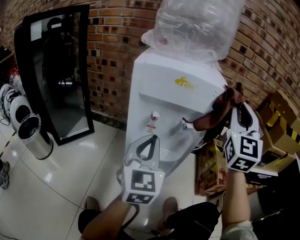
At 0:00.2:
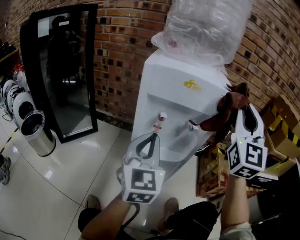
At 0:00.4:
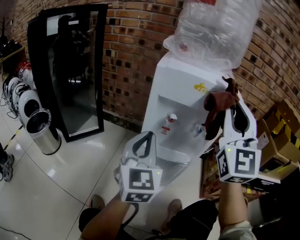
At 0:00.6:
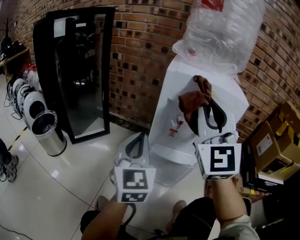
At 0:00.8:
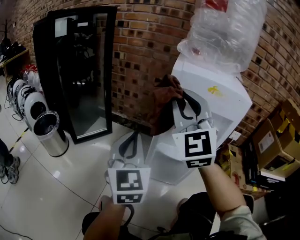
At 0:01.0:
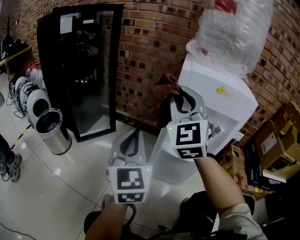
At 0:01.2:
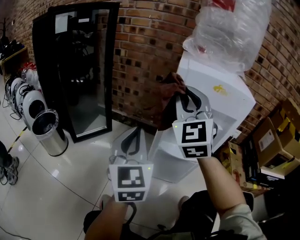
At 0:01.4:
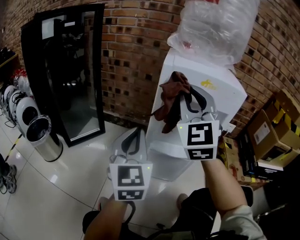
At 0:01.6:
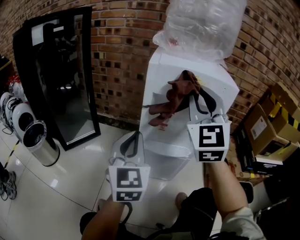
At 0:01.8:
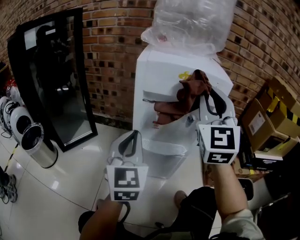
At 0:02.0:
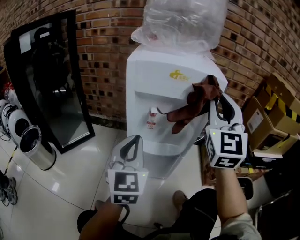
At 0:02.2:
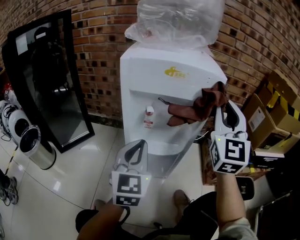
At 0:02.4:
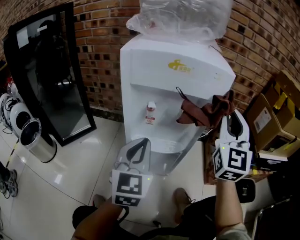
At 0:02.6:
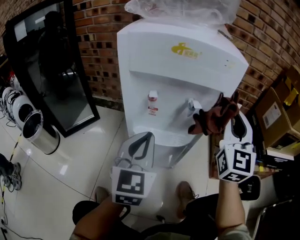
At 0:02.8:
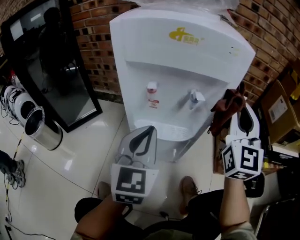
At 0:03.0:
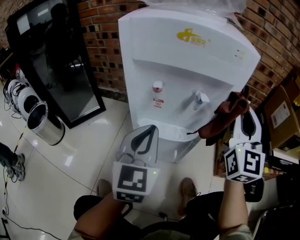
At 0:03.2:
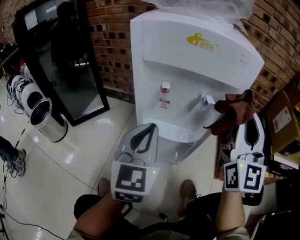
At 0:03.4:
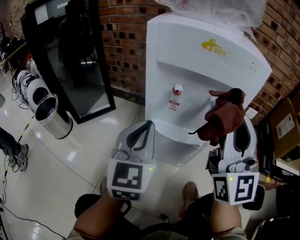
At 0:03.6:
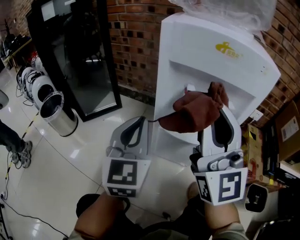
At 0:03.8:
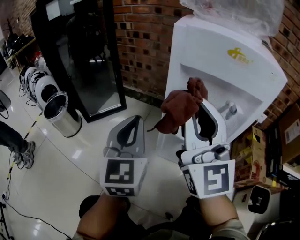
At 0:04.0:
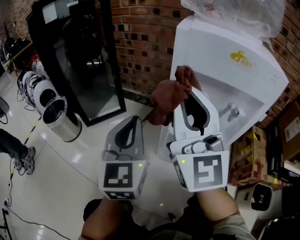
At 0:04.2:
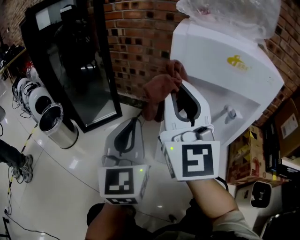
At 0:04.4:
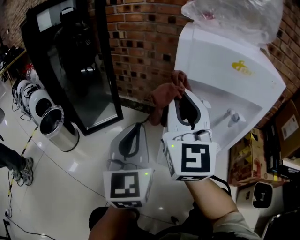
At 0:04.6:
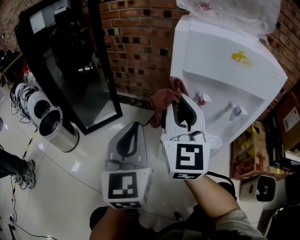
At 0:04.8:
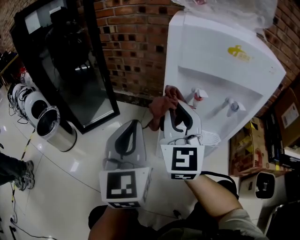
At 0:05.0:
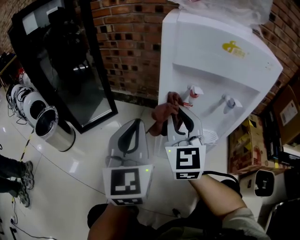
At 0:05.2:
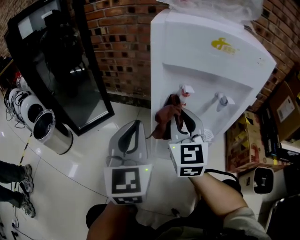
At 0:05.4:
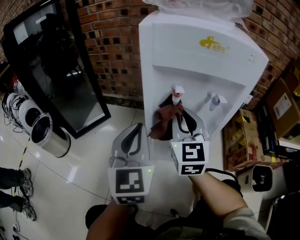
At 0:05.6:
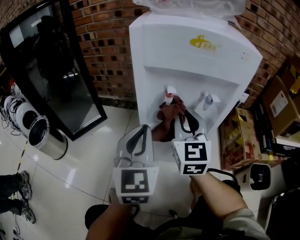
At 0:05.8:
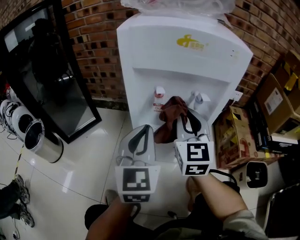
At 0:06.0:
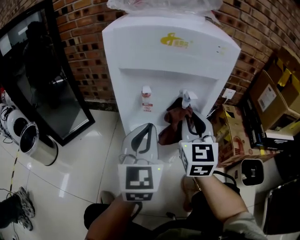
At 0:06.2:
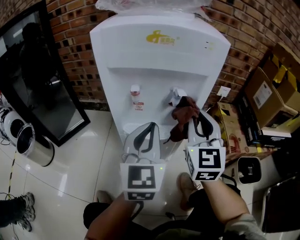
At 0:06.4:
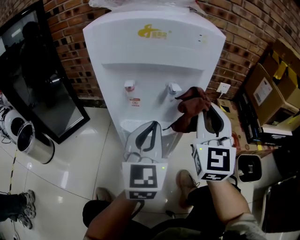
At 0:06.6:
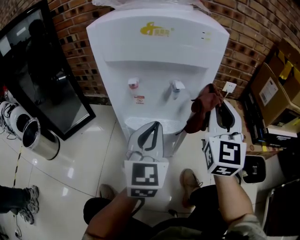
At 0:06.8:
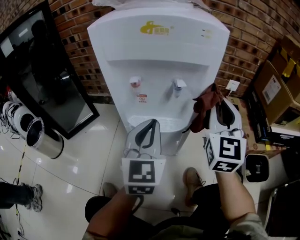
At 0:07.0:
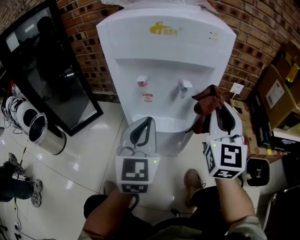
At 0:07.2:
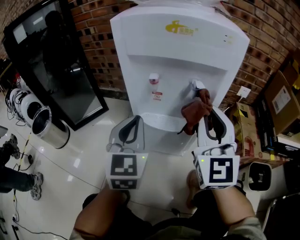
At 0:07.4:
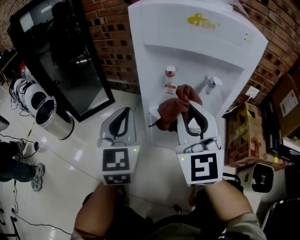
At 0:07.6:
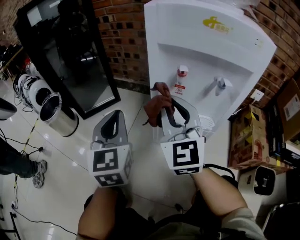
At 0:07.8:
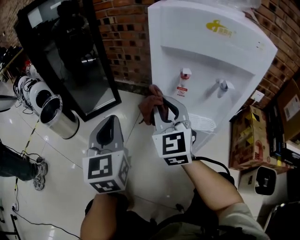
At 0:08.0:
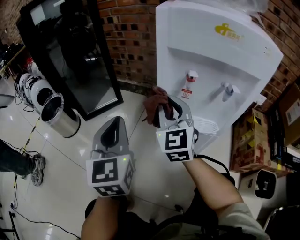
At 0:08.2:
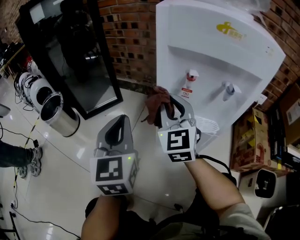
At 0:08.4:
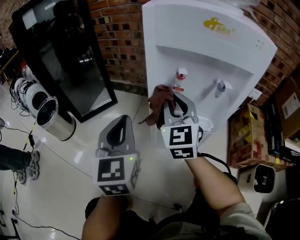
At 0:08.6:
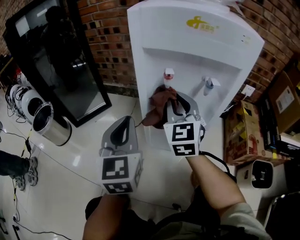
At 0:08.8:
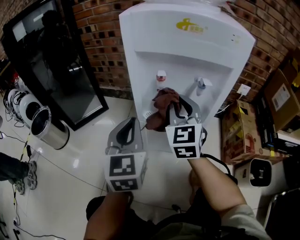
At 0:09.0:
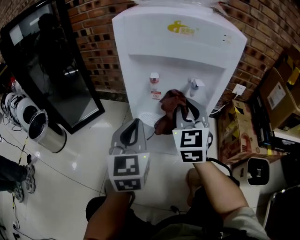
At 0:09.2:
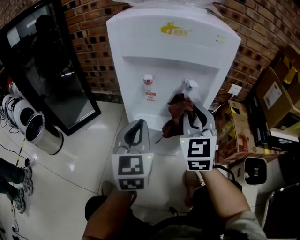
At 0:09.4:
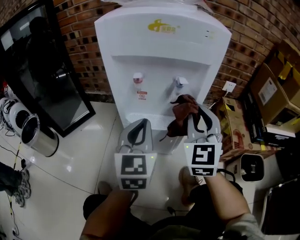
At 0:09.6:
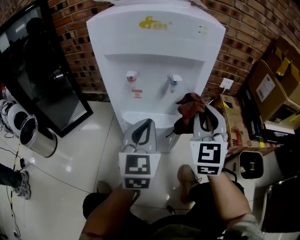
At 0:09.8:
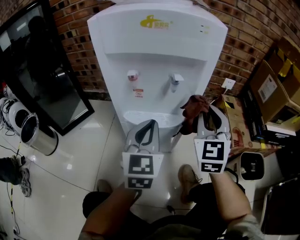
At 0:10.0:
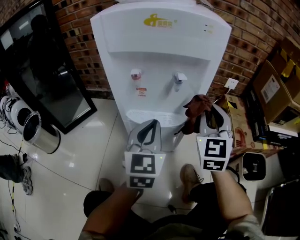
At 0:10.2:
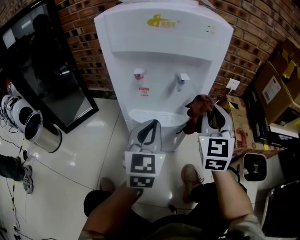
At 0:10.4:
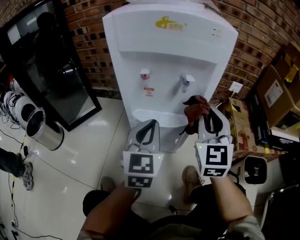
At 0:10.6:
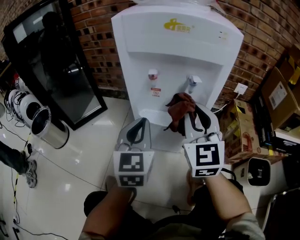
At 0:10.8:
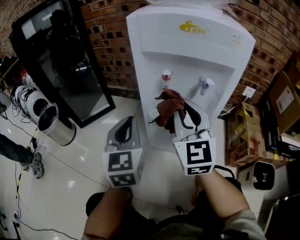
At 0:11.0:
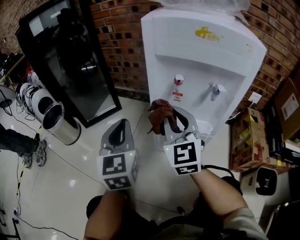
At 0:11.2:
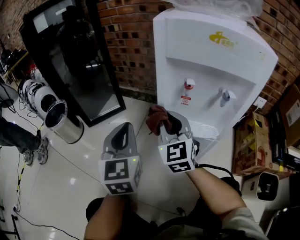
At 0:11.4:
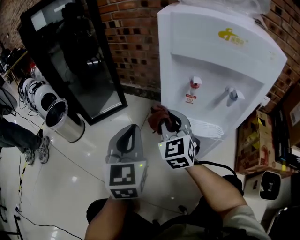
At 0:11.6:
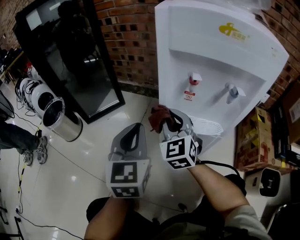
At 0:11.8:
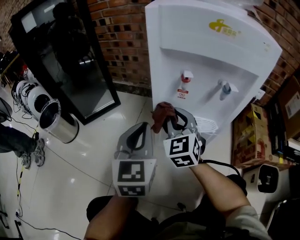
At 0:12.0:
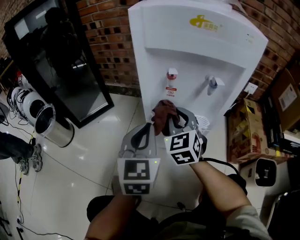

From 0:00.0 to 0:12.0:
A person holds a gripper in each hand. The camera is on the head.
From 0:00.0 to 0:01.6: The left gripper goes about 10 cm to the left. The right gripper moves to the left, about 20 cm.
From 0:01.6 to 0:03.0: The right gripper heads to the right and downward, covering roughly 25 cm, and changes its angle by approximately 20 degrees. Meanwhile the left gripper is displaced to the right and downward by approximately 10 cm.
From 0:03.0 to 0:04.4: The right gripper moves to the left, about 30 cm. The left gripper moves to the left, roughly 15 cm.
From 0:04.4 to 0:06.0: The right gripper goes about 25 cm to the right and downward, and turns by approximately 30 degrees. The left gripper travels to the right by approximately 15 cm.
From 0:06.0 to 0:07.6: The left gripper moves roughly 20 cm, and swivels some 20 degrees, while the right gripper moves about 15 cm, and swivels approximately 30 degrees.
From 0:07.6 to 0:09.0: The grippers both shift to the right by about 10 cm. The right gripper changes its angle by approximately 20 degrees.
From 0:09.0 to 0:10.4: Both grippers travel together to the right, roughly 10 cm.
From 0:10.4 to 0:12.0: The right gripper moves to the left, downward and forward, roughly 20 cm, and changes its angle by about 20 degrees, while the left gripper travels to the left by approximately 10 cm.

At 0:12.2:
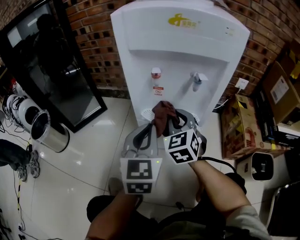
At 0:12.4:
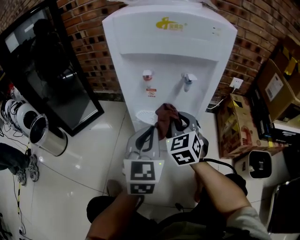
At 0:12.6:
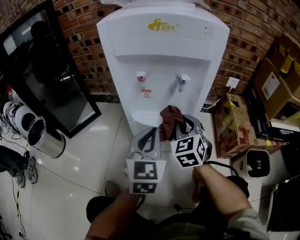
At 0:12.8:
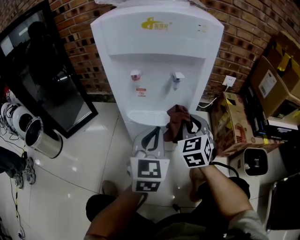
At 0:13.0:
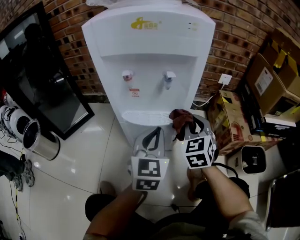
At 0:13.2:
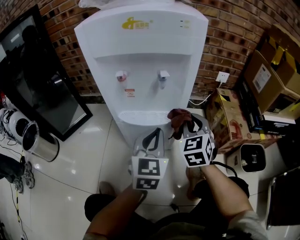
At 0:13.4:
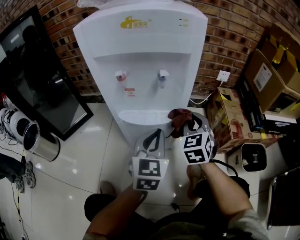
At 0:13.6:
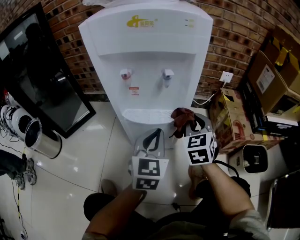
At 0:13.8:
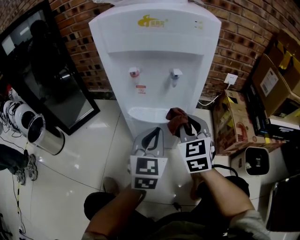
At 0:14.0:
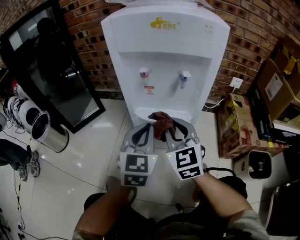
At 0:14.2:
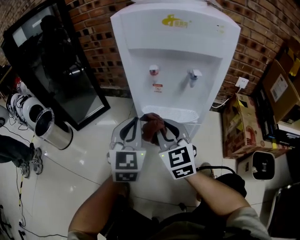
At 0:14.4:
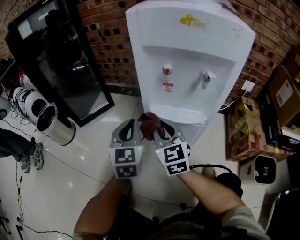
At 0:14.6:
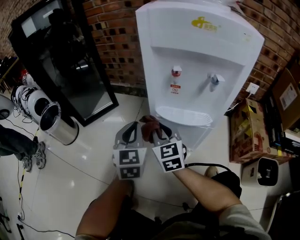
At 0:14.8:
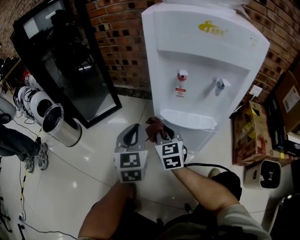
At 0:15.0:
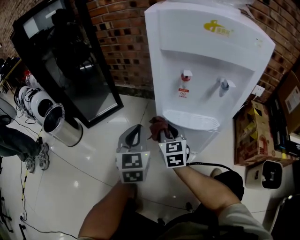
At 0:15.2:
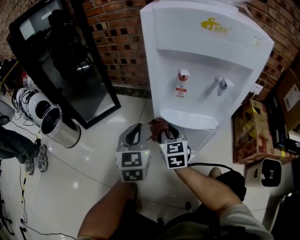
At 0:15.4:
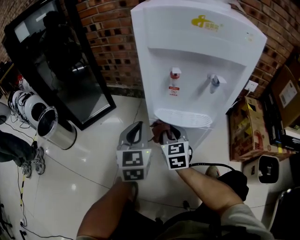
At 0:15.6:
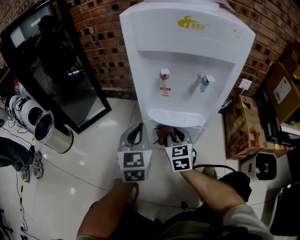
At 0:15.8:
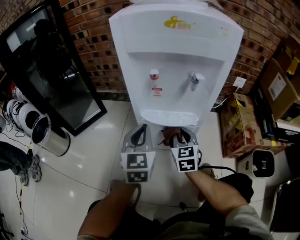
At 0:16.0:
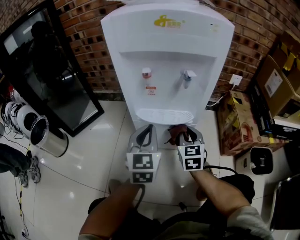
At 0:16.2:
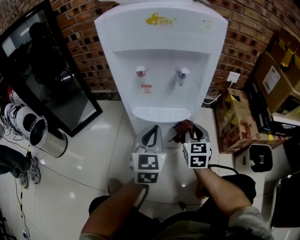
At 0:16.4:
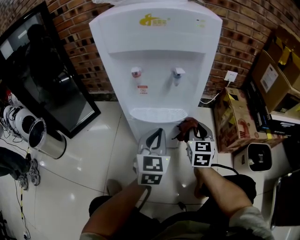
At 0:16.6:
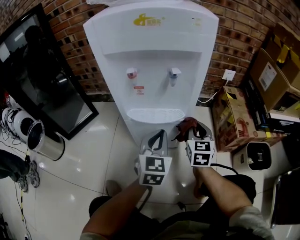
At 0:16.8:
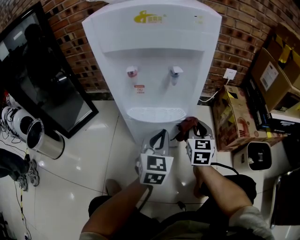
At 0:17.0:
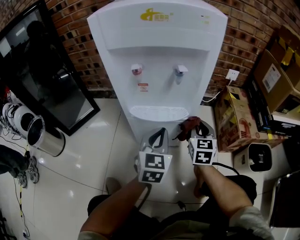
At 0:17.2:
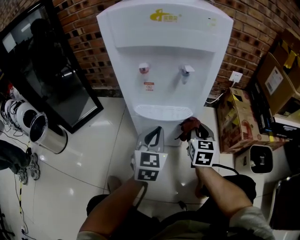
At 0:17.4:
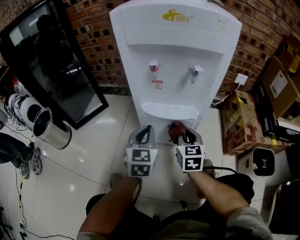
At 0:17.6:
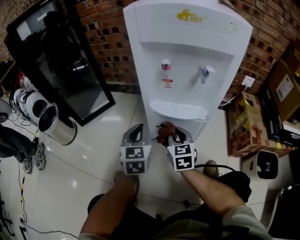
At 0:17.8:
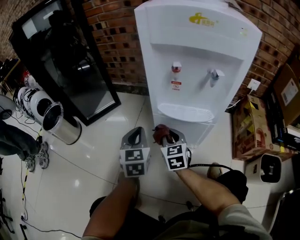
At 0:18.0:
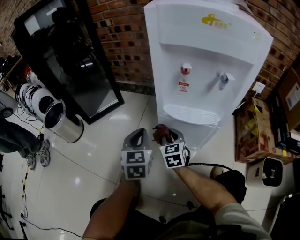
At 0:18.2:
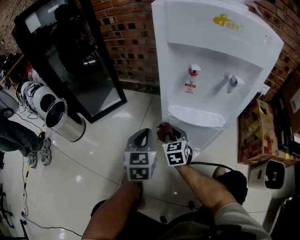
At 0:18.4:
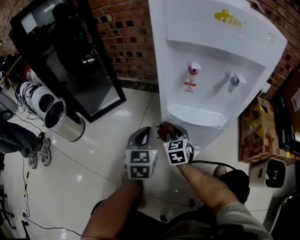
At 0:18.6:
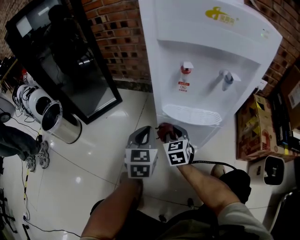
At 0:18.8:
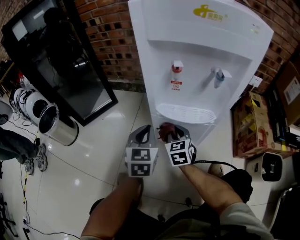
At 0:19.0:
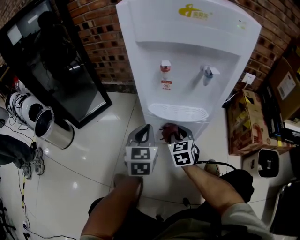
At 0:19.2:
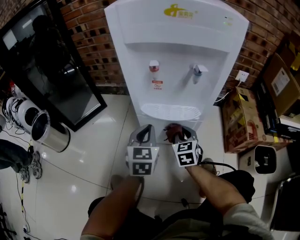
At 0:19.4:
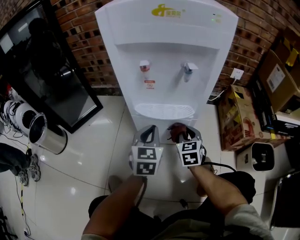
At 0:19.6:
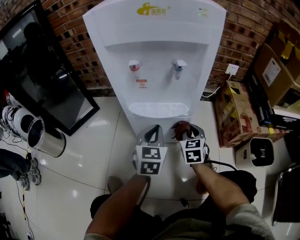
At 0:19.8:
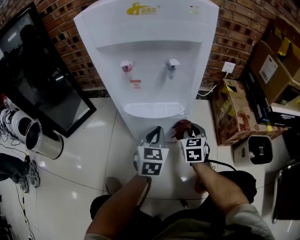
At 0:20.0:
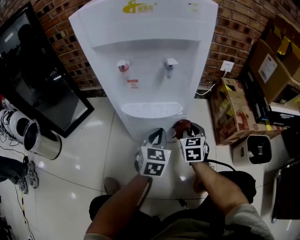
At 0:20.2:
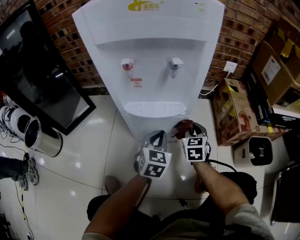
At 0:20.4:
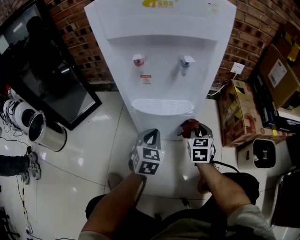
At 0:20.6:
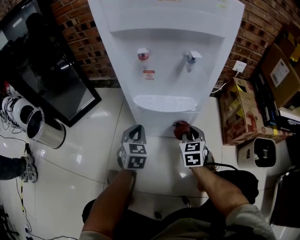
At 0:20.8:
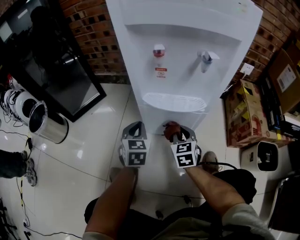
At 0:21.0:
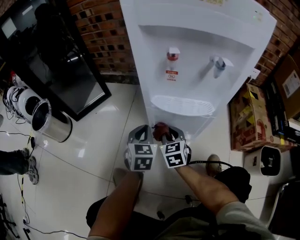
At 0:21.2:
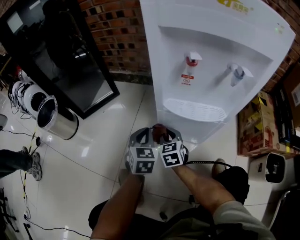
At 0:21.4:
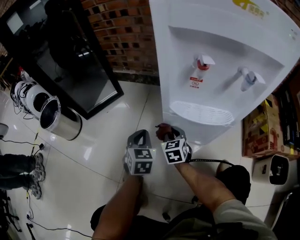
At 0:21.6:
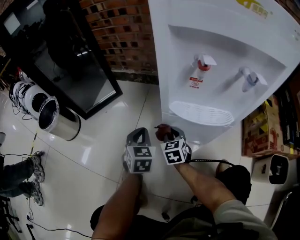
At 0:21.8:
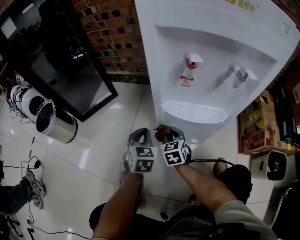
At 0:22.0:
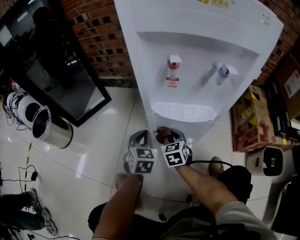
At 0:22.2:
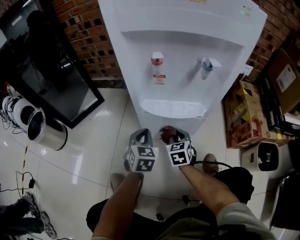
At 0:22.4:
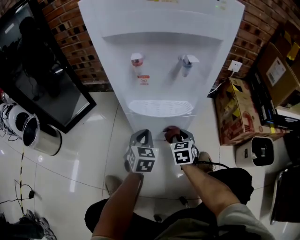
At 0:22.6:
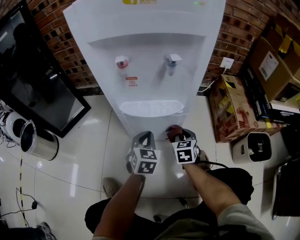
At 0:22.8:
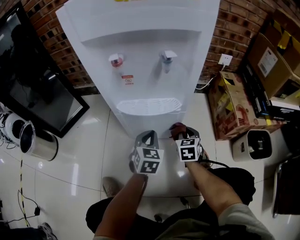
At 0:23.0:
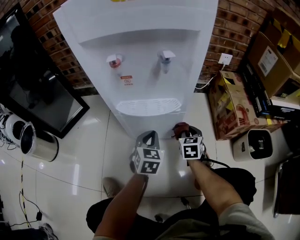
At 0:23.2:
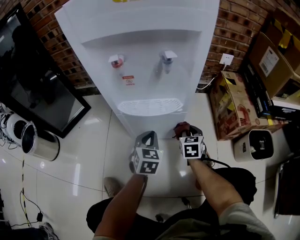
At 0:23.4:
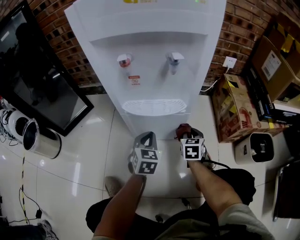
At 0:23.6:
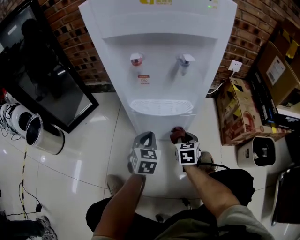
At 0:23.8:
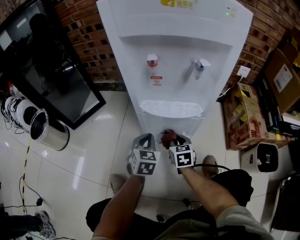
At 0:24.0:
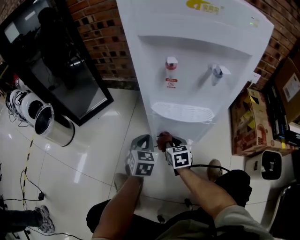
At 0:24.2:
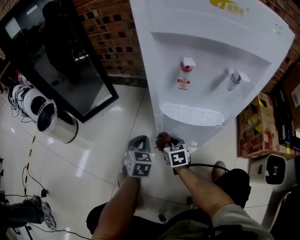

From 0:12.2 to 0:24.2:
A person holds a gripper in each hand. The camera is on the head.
From 0:12.2 to 0:13.8: The two grippers go about 10 cm to the right.
From 0:13.8 to 0:15.2: The right gripper goes about 20 cm to the left, downward and forward. Meanwhile the left gripper heads to the left, covering some 20 cm.
From 0:15.2 to 0:16.6: The grippers both shift to the right by about 25 cm. The left gripper rotates roughly 20 degrees; the right gripper rotates approximately 20 degrees.
From 0:16.6 to 0:18.2: Both grippers move to the left, about 25 cm. The right gripper changes its angle by roughly 20 degrees. The left gripper turns by approximately 20 degrees.
From 0:18.2 to 0:19.8: The grippers both shift to the right by approximately 25 cm. The left gripper turns by some 20 degrees. The right gripper turns by about 20 degrees.
From 0:19.8 to 0:21.2: The left gripper moves roughly 20 cm. Meanwhile the right gripper changes place by roughly 25 cm, and changes its angle by approximately 20 degrees.
From 0:21.2 to 0:22.6: The left gripper shifts roughly 15 cm to the right; the right gripper goes approximately 25 cm to the right, and swivels approximately 20 degrees.
From 0:22.6 to 0:24.2: The right gripper changes place by some 20 cm, and turns by approximately 30 degrees. Meanwhile the left gripper ends up roughly 15 cm from where it was.
